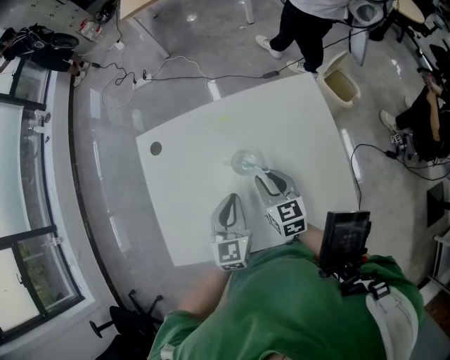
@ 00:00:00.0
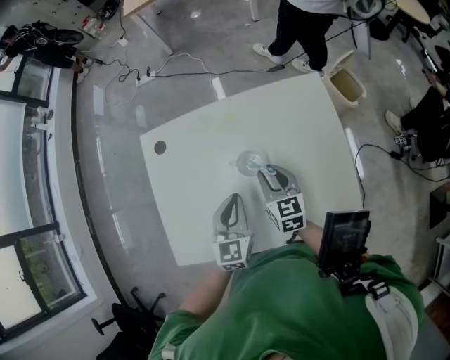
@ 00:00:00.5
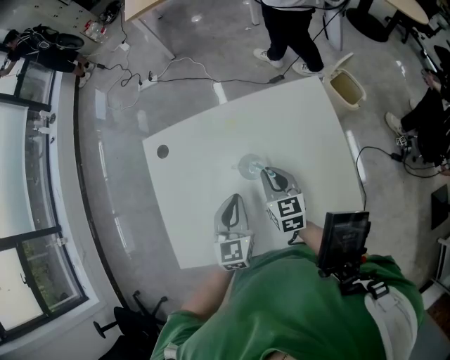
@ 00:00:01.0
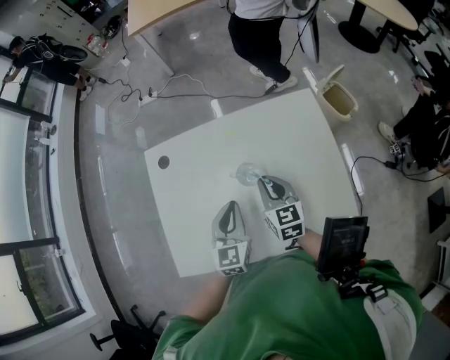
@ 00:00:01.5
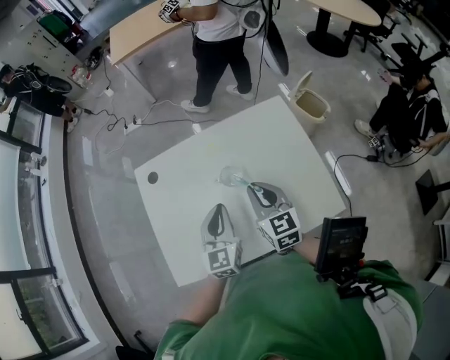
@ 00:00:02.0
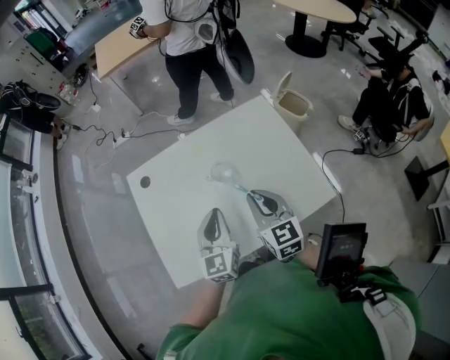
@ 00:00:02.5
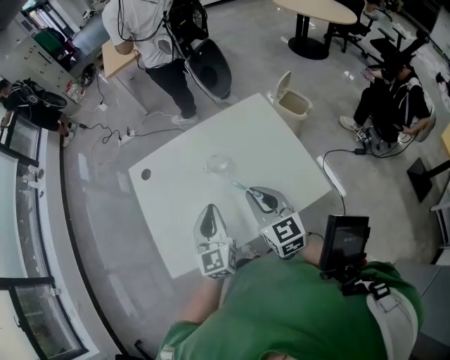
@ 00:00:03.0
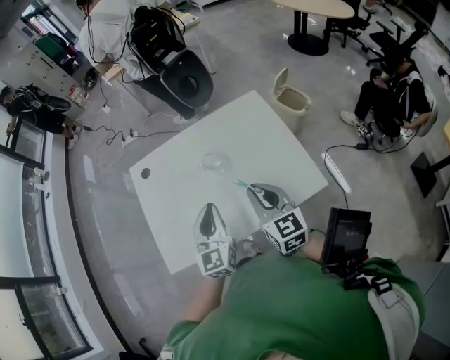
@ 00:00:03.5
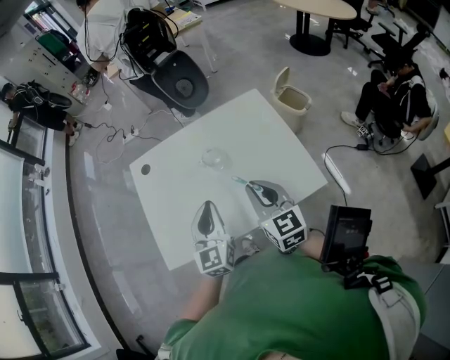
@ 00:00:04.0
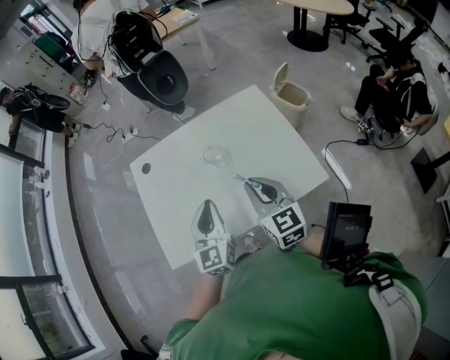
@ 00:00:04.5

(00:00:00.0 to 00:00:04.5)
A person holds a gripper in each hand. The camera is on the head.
00:00:00.0 - 00:00:02.0: The right gripper heads upward, covering some 10 cm; the left gripper moves upward, some 5 cm.
00:00:02.0 - 00:00:04.5: The grippers both shift backward by about 10 cm.

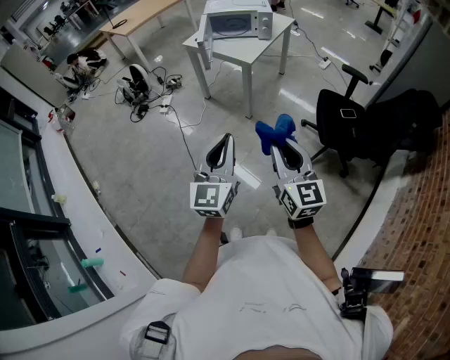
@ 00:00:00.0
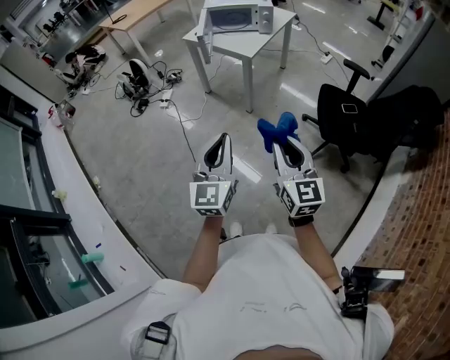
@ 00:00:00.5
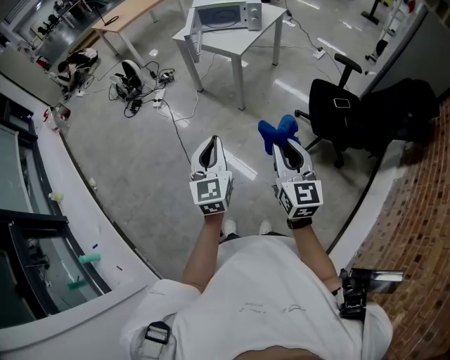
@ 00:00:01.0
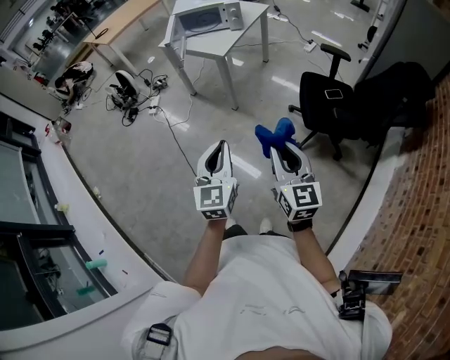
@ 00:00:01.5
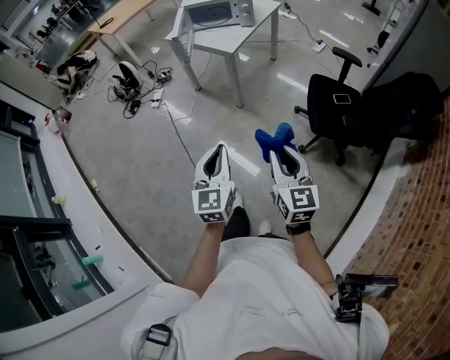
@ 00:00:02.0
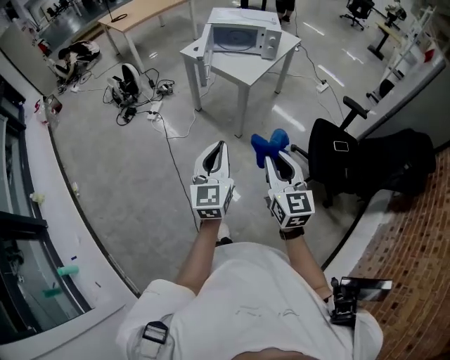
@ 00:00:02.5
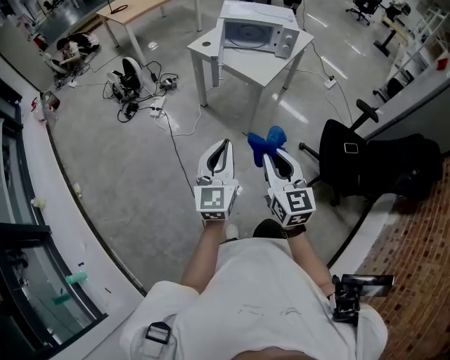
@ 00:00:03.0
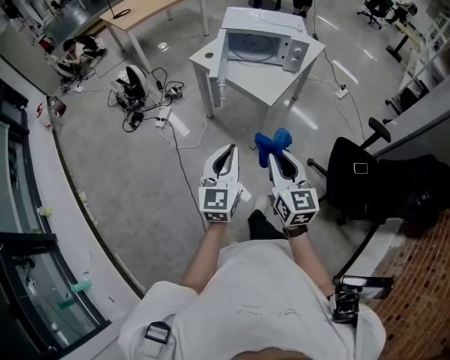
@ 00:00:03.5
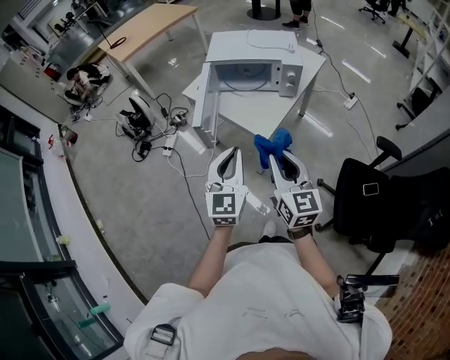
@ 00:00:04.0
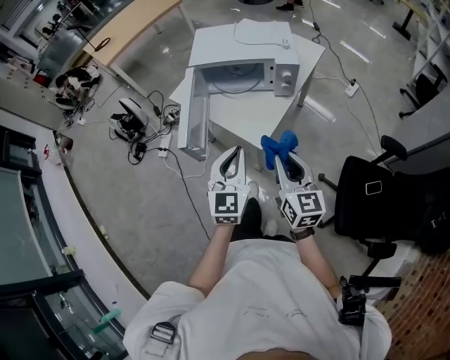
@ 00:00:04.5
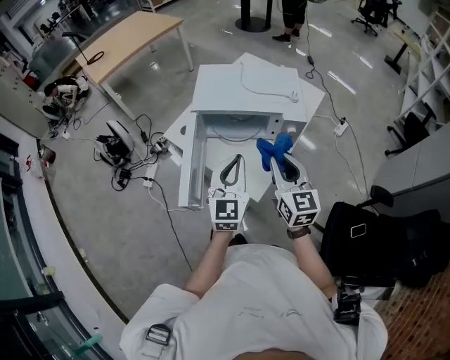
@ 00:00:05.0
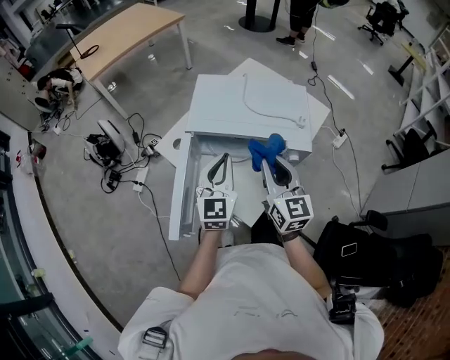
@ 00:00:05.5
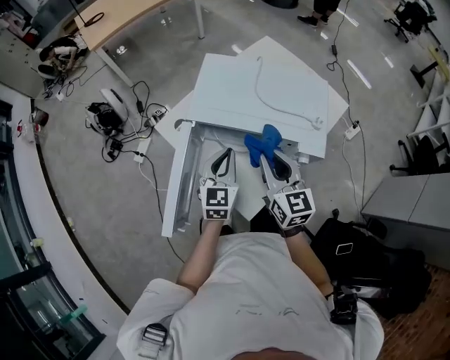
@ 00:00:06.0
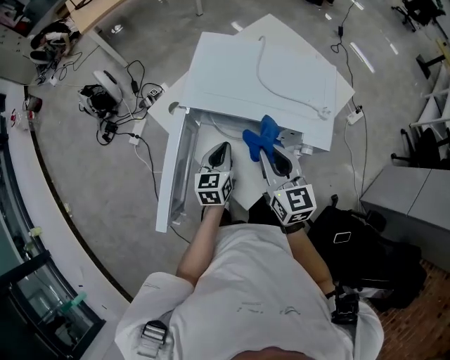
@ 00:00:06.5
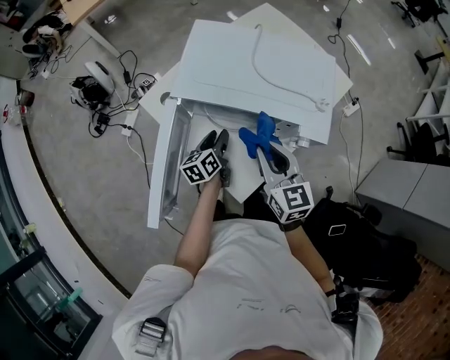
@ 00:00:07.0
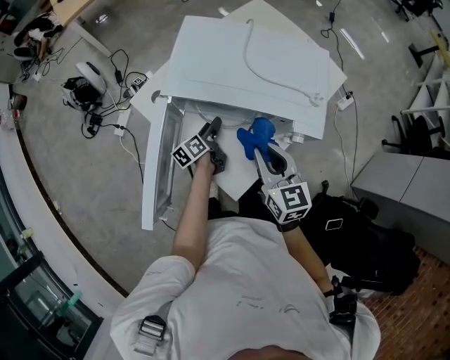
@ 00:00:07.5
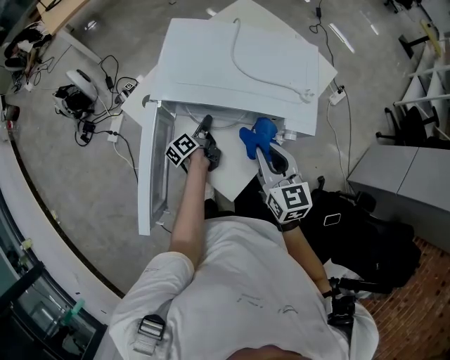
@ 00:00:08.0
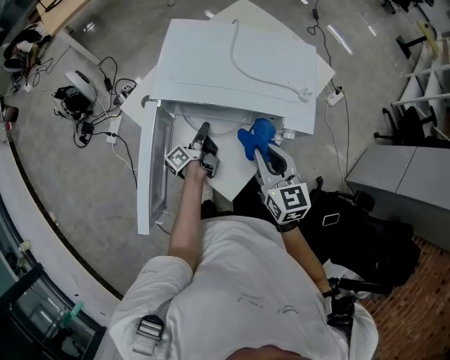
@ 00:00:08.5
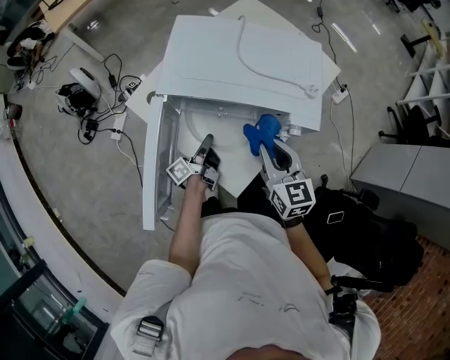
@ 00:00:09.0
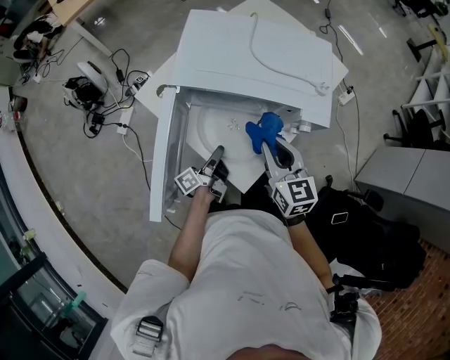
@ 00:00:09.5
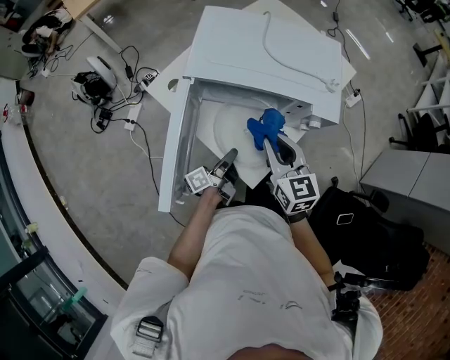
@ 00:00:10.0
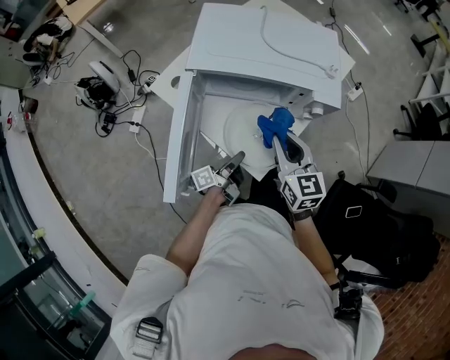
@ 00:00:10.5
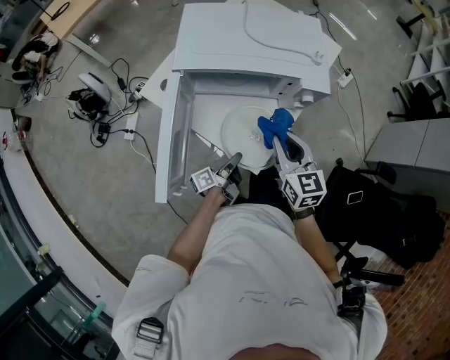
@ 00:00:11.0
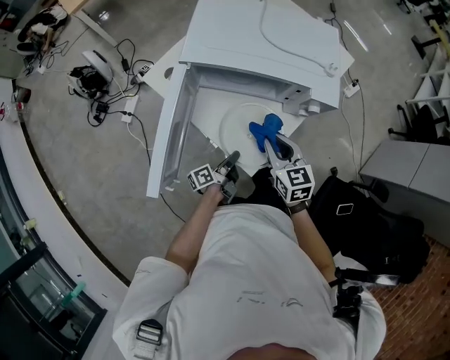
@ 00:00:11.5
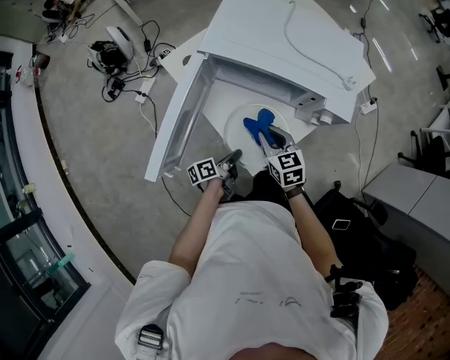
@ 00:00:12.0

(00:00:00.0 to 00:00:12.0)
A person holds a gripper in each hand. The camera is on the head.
00:00:00.0 - 00:00:02.0: The right gripper moves to the right and downward, roughly 10 cm; the left gripper shifts roughly 10 cm downward and to the right.
00:00:02.0 - 00:00:04.0: The two grippers travel together, forward, some 50 cm.
00:00:04.0 - 00:00:06.0: The two grippers travel together, forward, some 40 cm.
00:00:06.0 - 00:00:08.0: The left gripper shifts about 20 cm downward, and rotates around the line of its fingers by some 70 degrees, counterclockwise from behind. Meanwhile the right gripper is displaced downward by some 5 cm.
00:00:08.0 - 00:00:10.0: The right gripper travels to the left by about 5 cm. Meanwhile the left gripper goes some 15 cm backward, and changes its angle by about 20 degrees.
00:00:10.0 - 00:00:12.0: The right gripper moves downward, approximately 15 cm, and changes its angle by roughly 20 degrees. Meanwhile the left gripper is displaced downward and backward by approximately 10 cm.

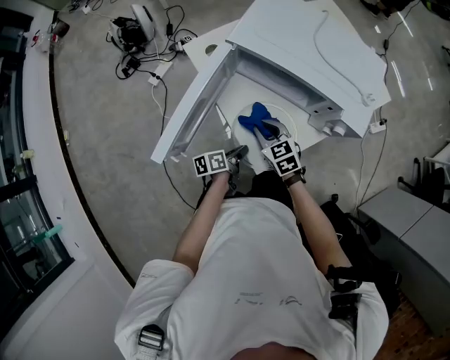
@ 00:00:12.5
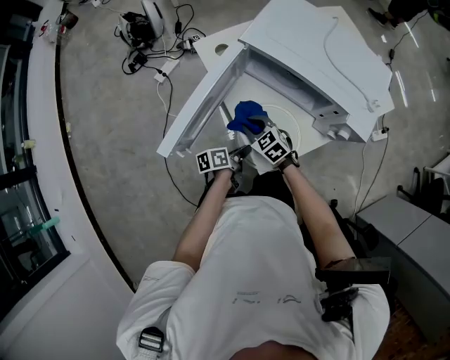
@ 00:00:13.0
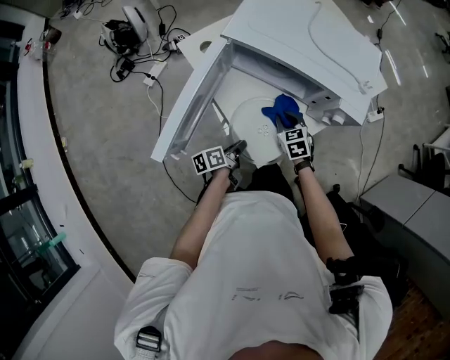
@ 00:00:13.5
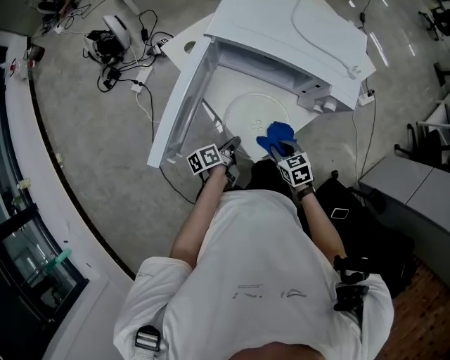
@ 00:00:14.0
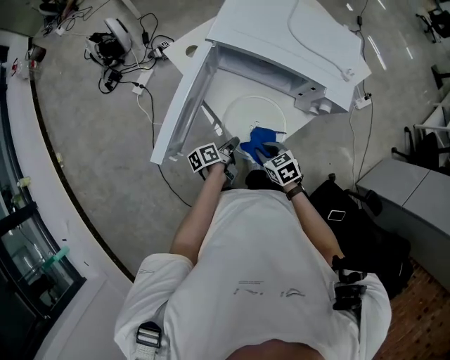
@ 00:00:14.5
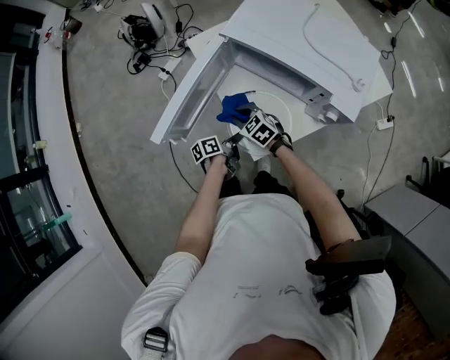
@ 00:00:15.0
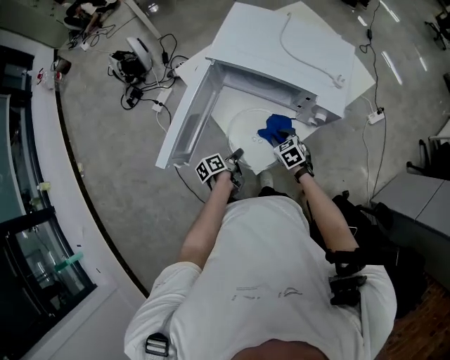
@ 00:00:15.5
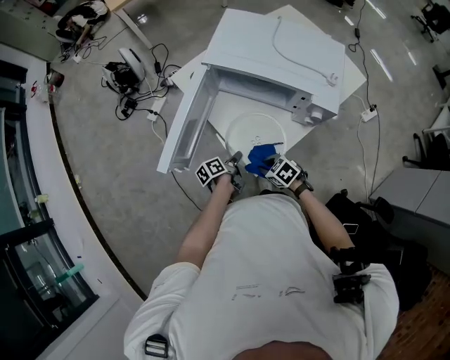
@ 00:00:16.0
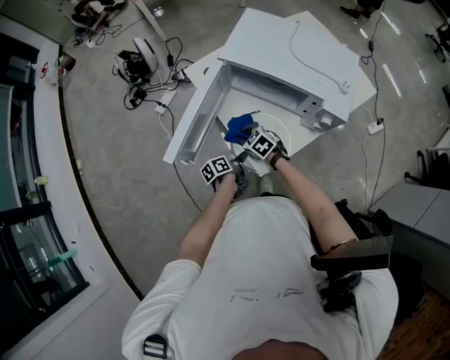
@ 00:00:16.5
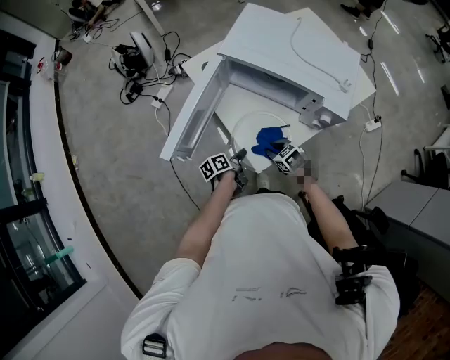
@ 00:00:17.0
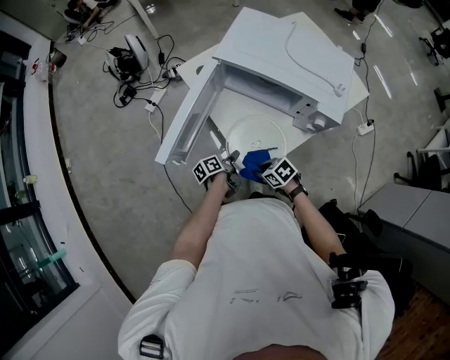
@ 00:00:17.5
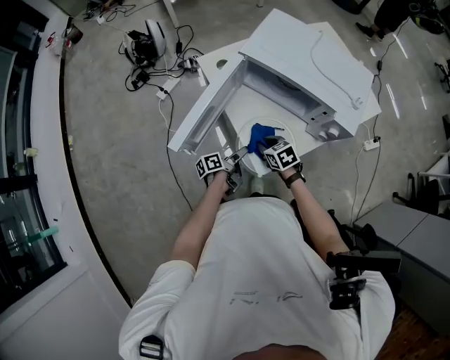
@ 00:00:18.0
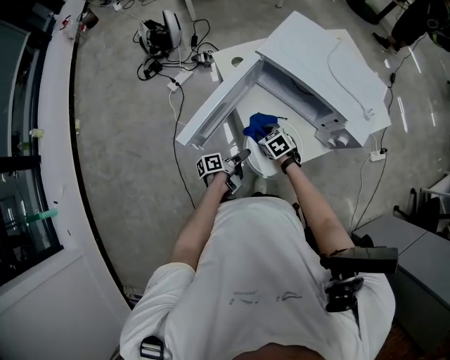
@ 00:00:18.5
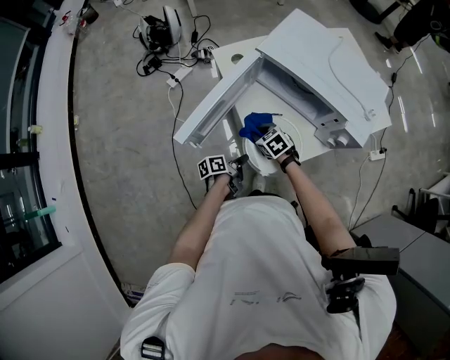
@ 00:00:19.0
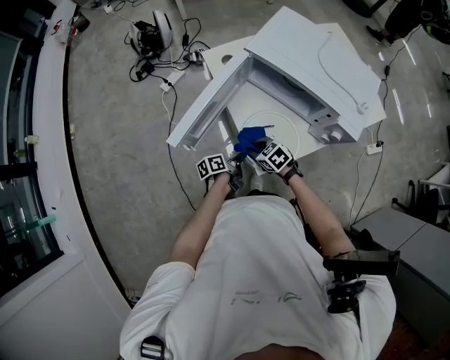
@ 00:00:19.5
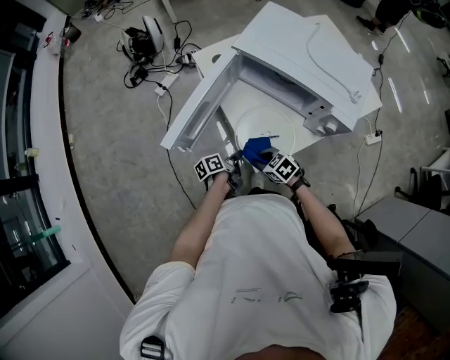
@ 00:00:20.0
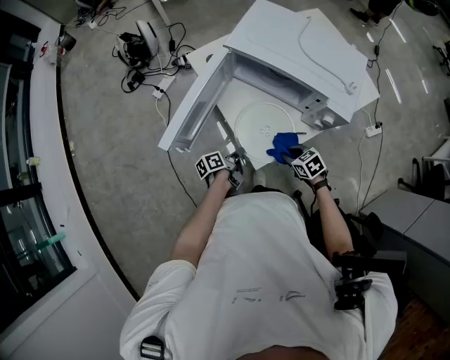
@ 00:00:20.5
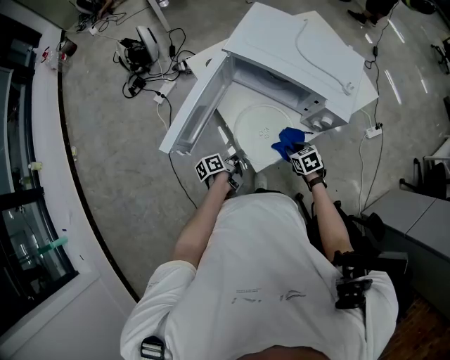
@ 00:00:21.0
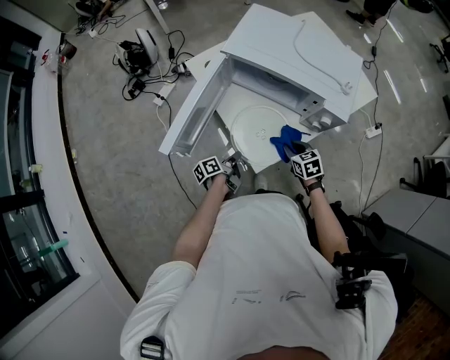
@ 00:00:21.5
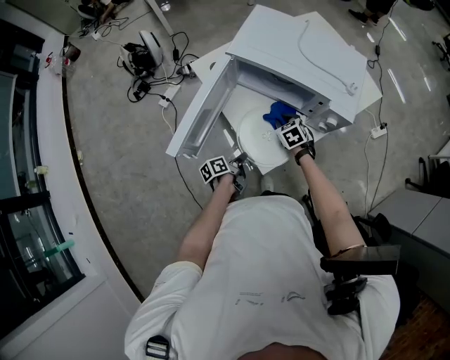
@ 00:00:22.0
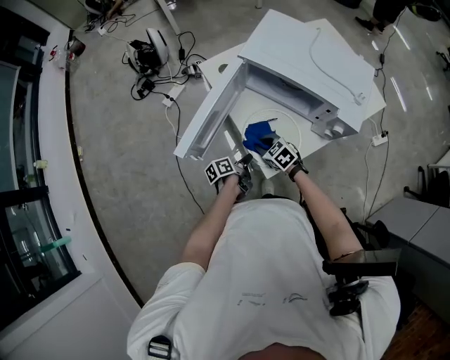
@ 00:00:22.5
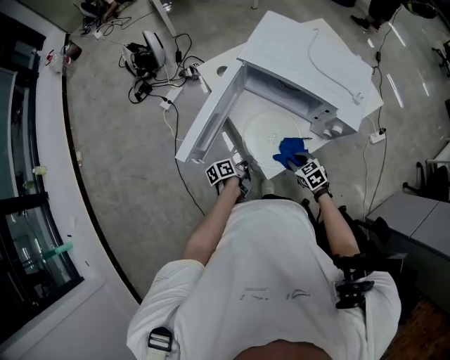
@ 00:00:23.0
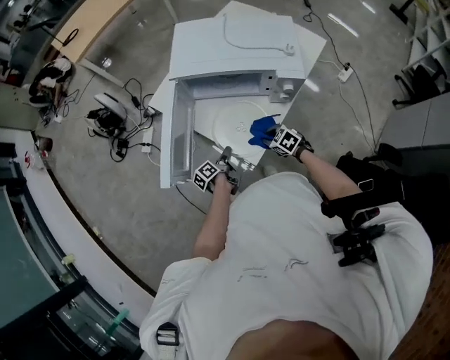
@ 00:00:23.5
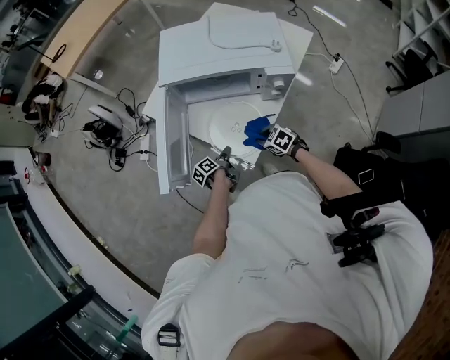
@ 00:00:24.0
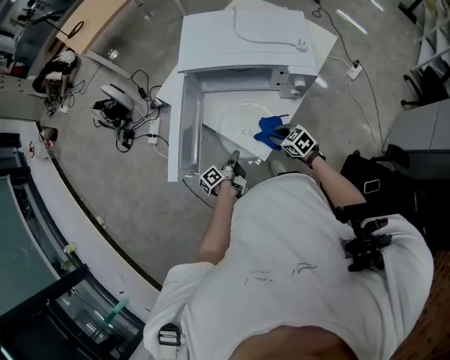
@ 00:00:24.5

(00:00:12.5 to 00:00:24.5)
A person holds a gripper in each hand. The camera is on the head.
00:00:12.5 - 00:00:14.5: The right gripper goes left and right, about 15 cm each way, reversing 2 times.
00:00:14.5 - 00:00:16.5: The right gripper moves left and right over about 15 cm, changing direction 2 times, and swivels about 20 degrees.
00:00:16.5 - 00:00:18.5: The right gripper travels backward and back again, about 15 cm each way.
00:00:18.5 - 00:00:20.5: The left gripper closes. Meanwhile the right gripper heads backward and to the right, covering roughly 20 cm.
00:00:20.5 - 00:00:22.5: The right gripper travels to the left and forward by some 15 cm.
00:00:22.5 - 00:00:24.5: The right gripper moves to the right and backward, some 15 cm, and changes its angle by about 30 degrees.
